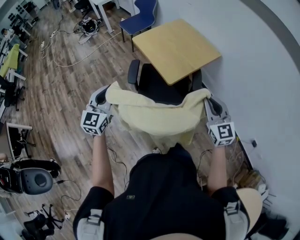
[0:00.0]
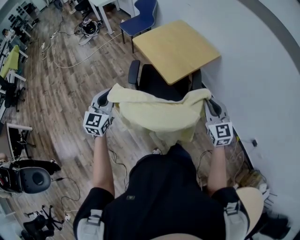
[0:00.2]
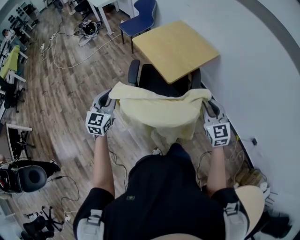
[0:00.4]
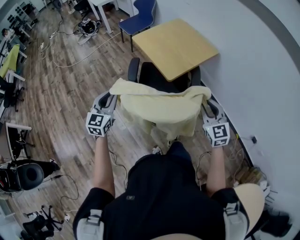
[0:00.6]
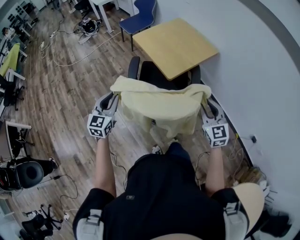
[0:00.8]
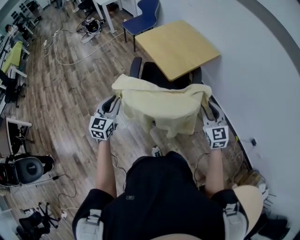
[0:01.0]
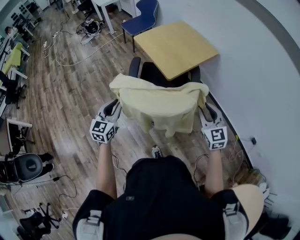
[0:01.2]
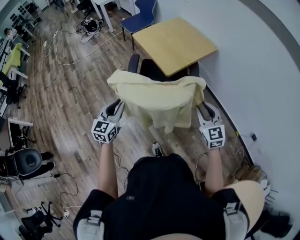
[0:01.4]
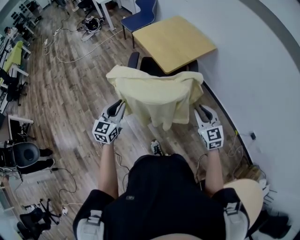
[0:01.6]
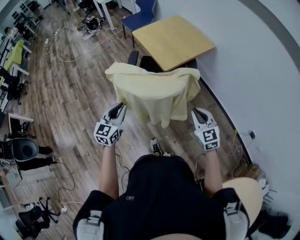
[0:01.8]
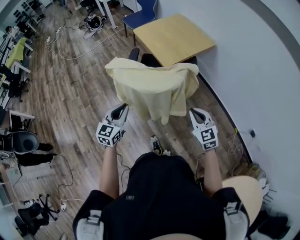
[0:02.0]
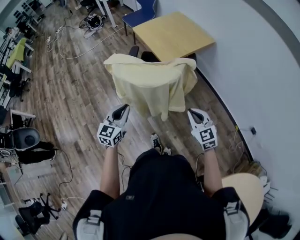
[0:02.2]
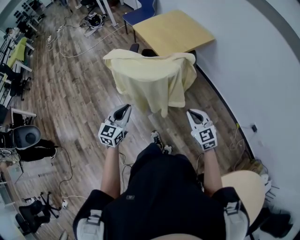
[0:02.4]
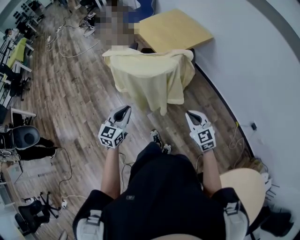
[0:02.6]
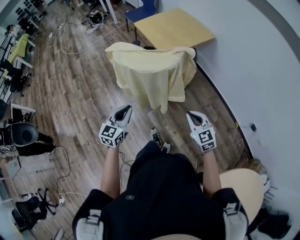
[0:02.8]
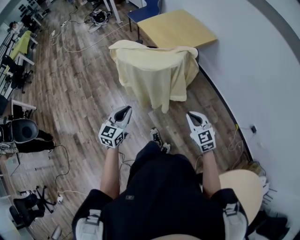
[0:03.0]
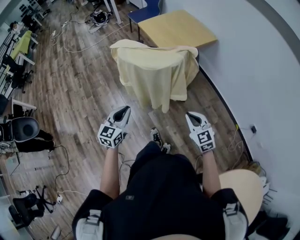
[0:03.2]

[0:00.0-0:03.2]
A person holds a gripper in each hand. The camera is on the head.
0:00.0 to 0:01.6: Both grippers travel together backward and downward, about 15 cm.
0:01.6 to 0:03.2: The grippers both shift backward by approximately 15 cm. The right gripper closes up.

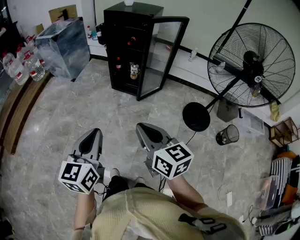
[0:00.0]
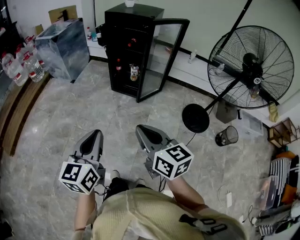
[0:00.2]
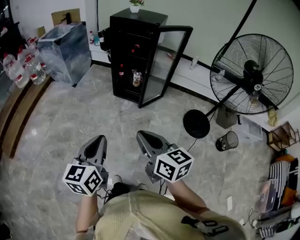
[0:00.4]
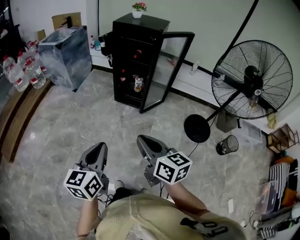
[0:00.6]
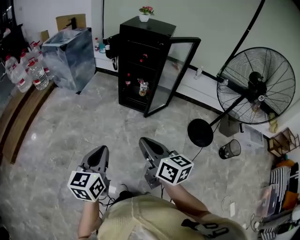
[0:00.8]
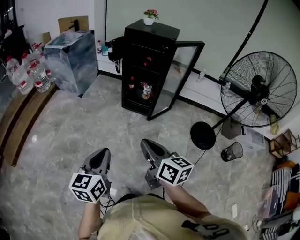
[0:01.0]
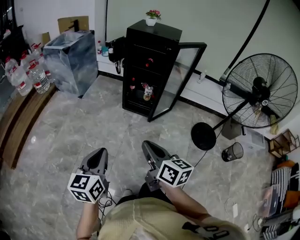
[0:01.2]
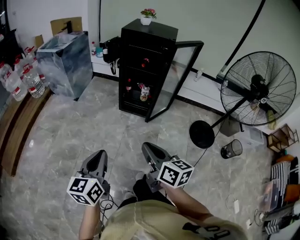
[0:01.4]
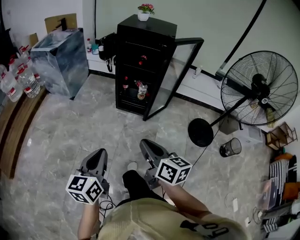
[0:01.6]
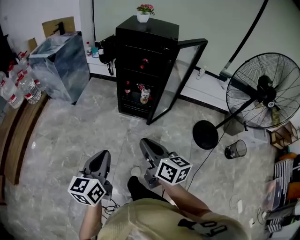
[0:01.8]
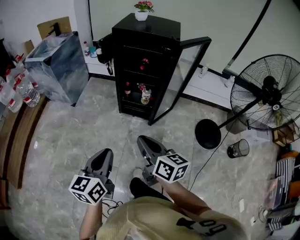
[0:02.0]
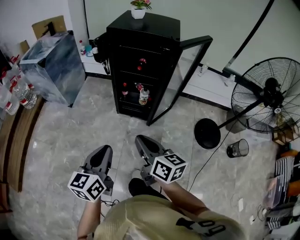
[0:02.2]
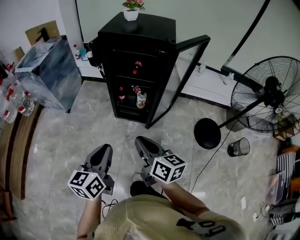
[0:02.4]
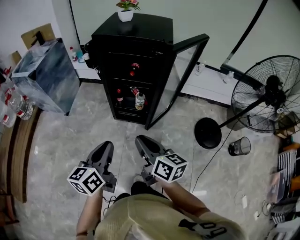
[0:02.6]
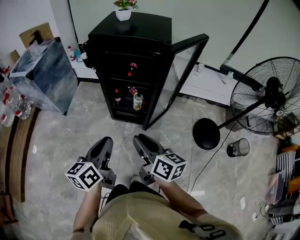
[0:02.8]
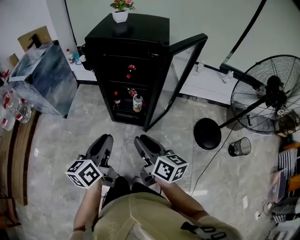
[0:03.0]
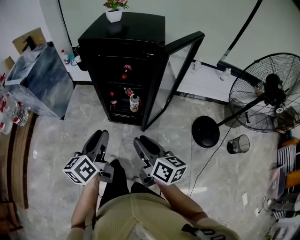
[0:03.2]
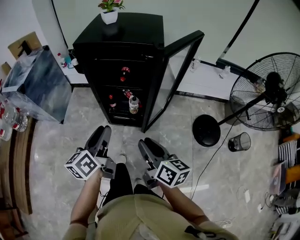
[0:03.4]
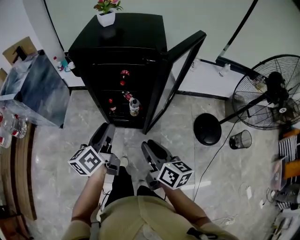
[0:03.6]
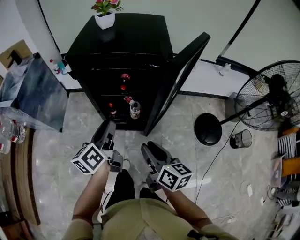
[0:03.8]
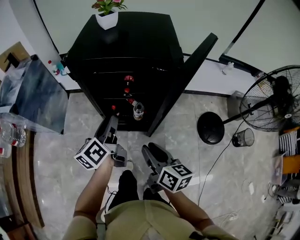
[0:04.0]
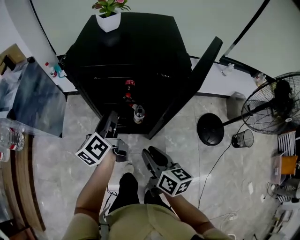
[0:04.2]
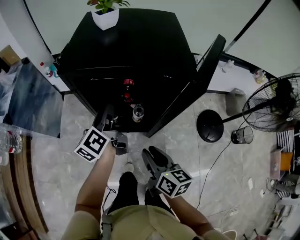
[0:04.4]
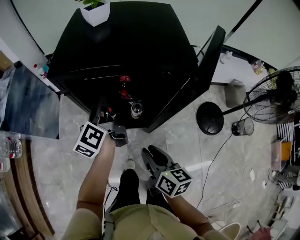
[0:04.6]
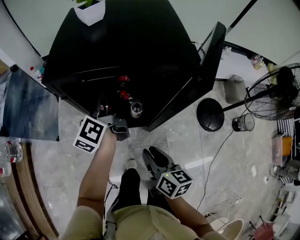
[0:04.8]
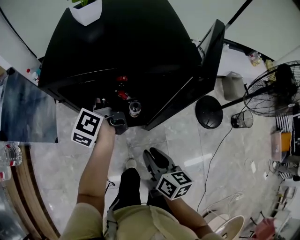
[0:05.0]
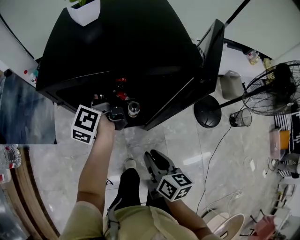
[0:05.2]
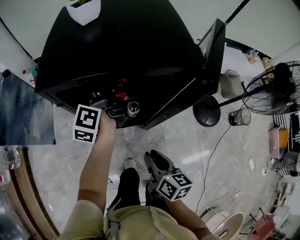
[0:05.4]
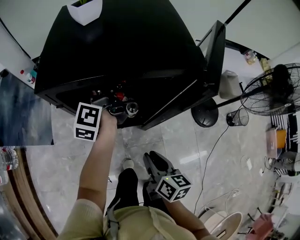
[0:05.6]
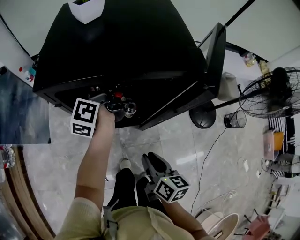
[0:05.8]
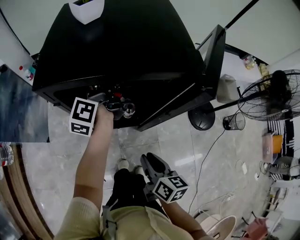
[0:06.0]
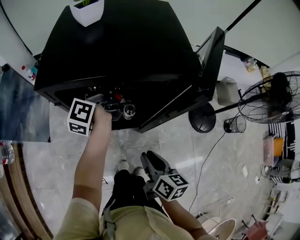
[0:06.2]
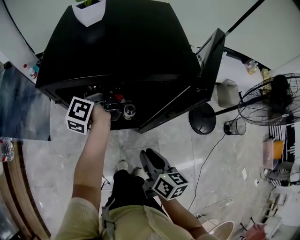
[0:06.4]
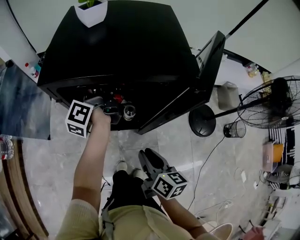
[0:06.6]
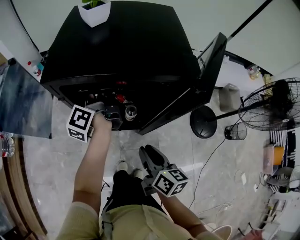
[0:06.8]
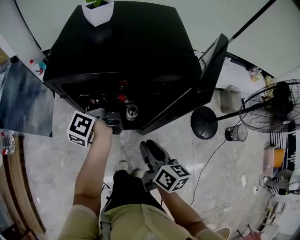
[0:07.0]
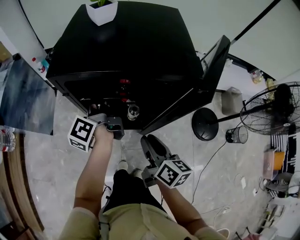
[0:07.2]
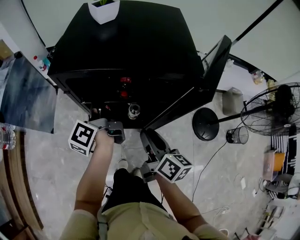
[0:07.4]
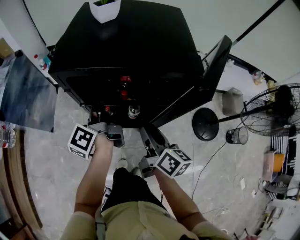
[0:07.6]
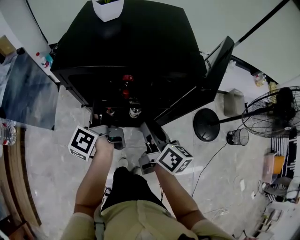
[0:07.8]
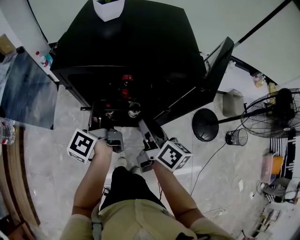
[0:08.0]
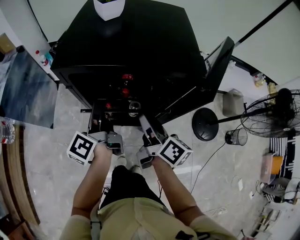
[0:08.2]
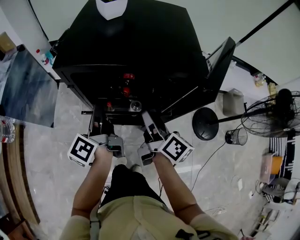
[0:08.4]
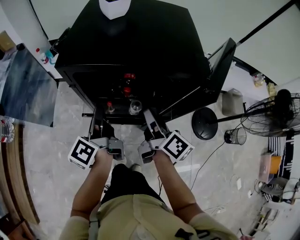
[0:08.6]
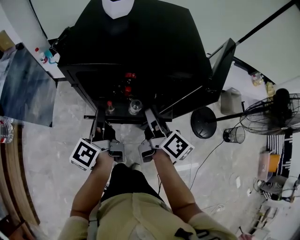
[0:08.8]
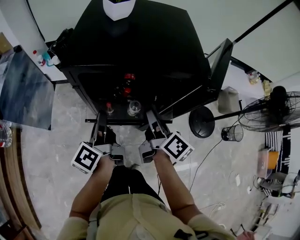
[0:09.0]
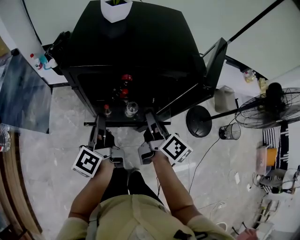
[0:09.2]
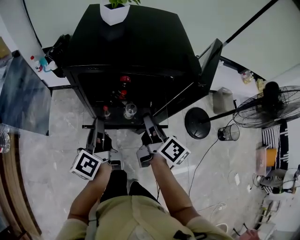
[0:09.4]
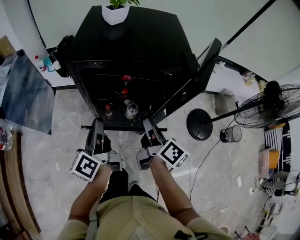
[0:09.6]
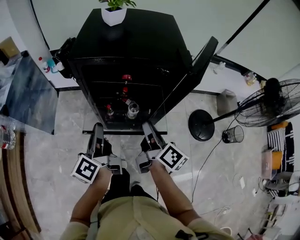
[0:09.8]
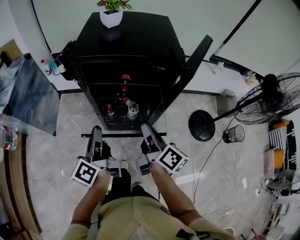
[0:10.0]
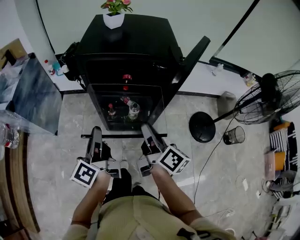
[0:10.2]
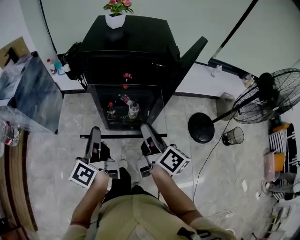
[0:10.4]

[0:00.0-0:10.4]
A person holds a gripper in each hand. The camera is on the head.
0:00.0 to 0:01.4: The two grippers go about 20 cm to the left and forward.
0:01.4 to 0:03.0: The two grippers go about 35 cm forward. The right gripper opens its fingers.
0:03.0 to 0:04.4: The right gripper travels forward by roughly 20 cm. Meanwhile the left gripper moves forward, approximately 35 cm, and opens up.
0:04.4 to 0:06.0: The left gripper goes about 15 cm forward, rotates roughly 20 degrees, and closes, while the right gripper goes roughly 5 cm downward.
0:06.0 to 0:07.4: The left gripper travels backward by about 10 cm; the right gripper heads forward and upward, covering about 10 cm.
0:07.4 to 0:09.0: The left gripper is displaced backward by roughly 10 cm; the right gripper shifts roughly 5 cm forward.
0:09.0 to 0:10.4: The grippers both shift backward by roughly 15 cm.

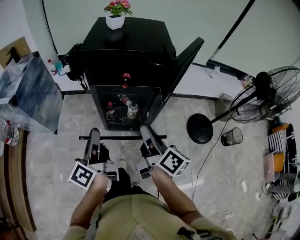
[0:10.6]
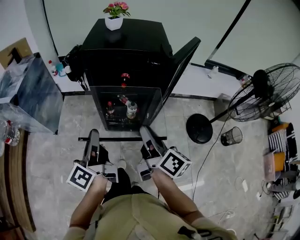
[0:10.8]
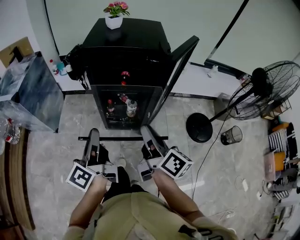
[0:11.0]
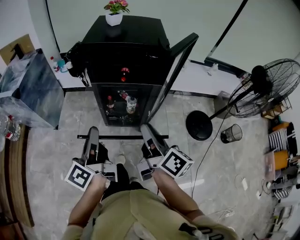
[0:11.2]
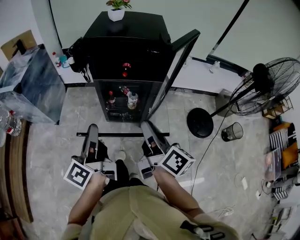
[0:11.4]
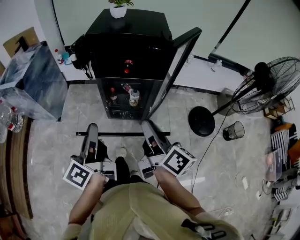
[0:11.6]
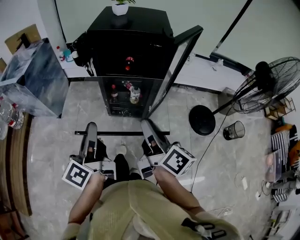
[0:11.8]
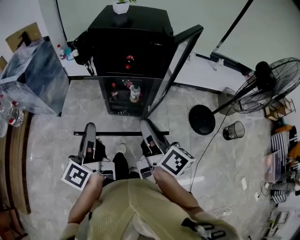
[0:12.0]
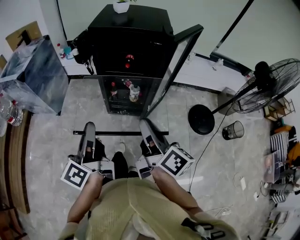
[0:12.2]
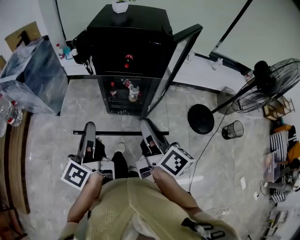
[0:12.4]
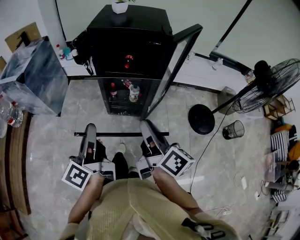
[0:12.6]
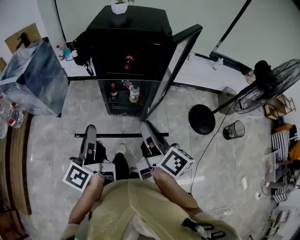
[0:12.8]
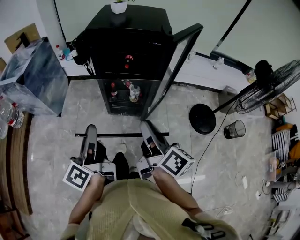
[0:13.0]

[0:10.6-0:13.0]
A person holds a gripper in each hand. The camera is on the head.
0:10.6 to 0:11.8: The two grippers go roughly 10 cm backward.
0:11.8 to 0:13.0: There are only small adjustments of the grippers.

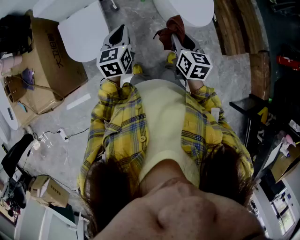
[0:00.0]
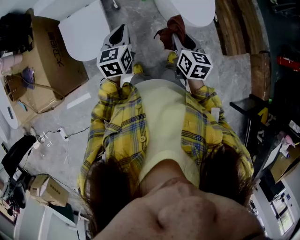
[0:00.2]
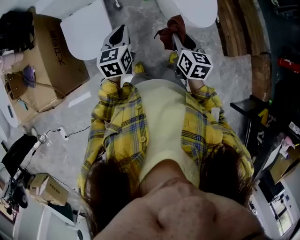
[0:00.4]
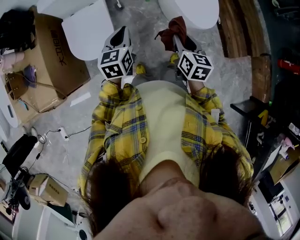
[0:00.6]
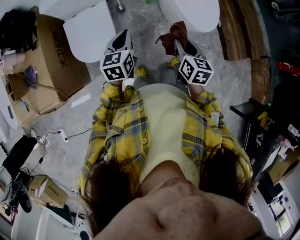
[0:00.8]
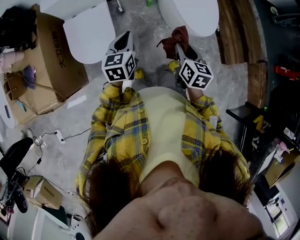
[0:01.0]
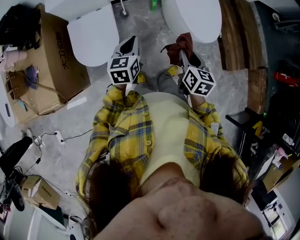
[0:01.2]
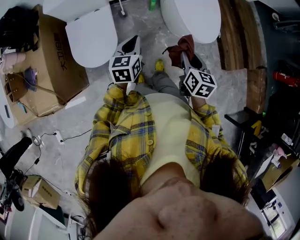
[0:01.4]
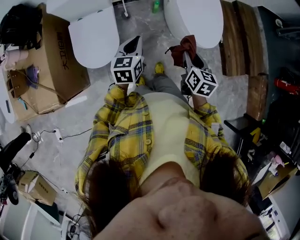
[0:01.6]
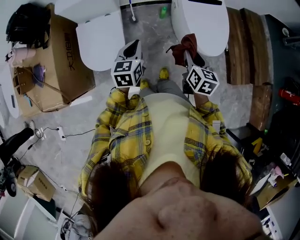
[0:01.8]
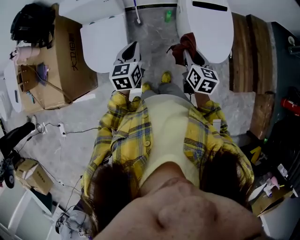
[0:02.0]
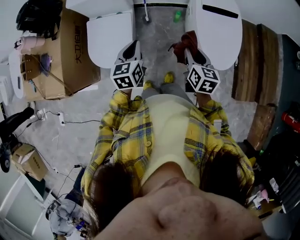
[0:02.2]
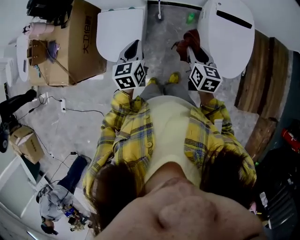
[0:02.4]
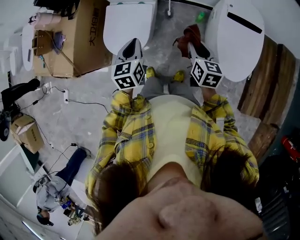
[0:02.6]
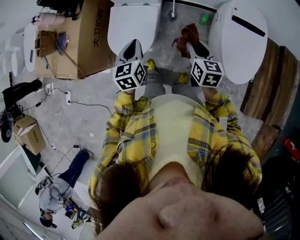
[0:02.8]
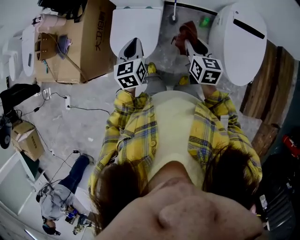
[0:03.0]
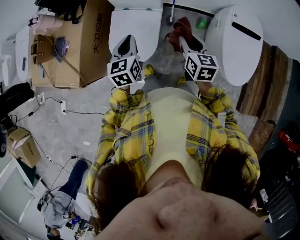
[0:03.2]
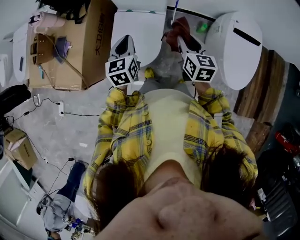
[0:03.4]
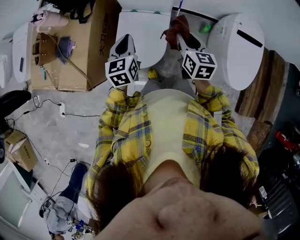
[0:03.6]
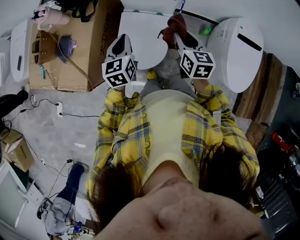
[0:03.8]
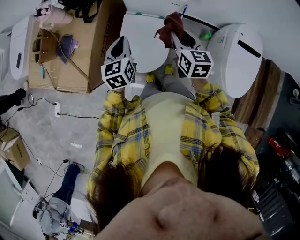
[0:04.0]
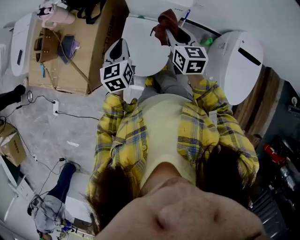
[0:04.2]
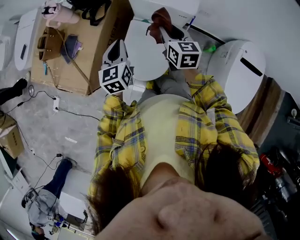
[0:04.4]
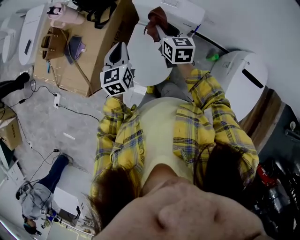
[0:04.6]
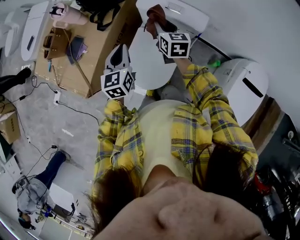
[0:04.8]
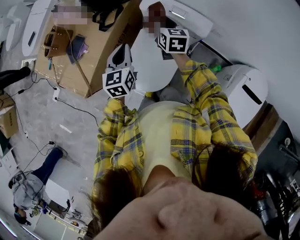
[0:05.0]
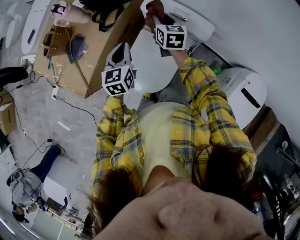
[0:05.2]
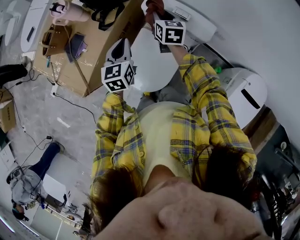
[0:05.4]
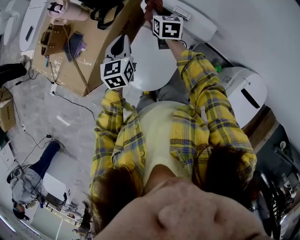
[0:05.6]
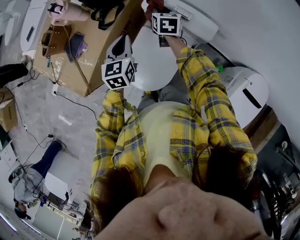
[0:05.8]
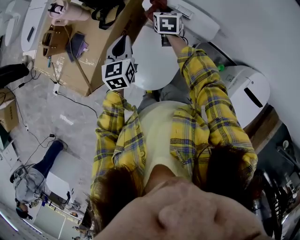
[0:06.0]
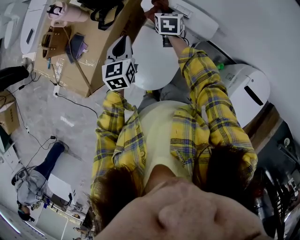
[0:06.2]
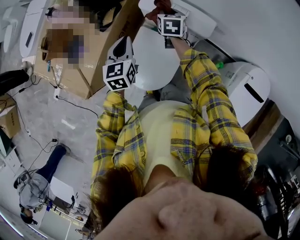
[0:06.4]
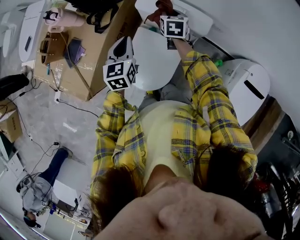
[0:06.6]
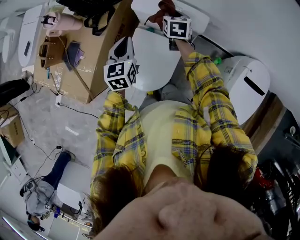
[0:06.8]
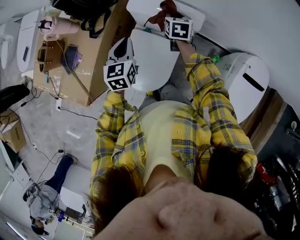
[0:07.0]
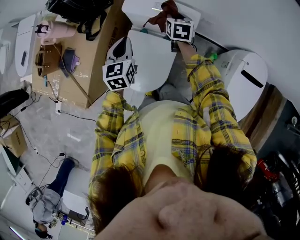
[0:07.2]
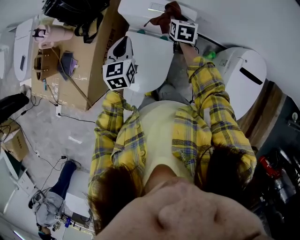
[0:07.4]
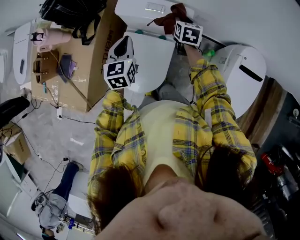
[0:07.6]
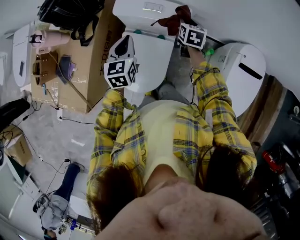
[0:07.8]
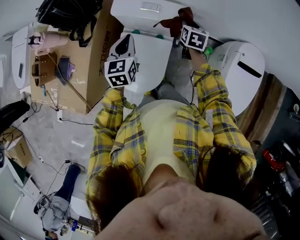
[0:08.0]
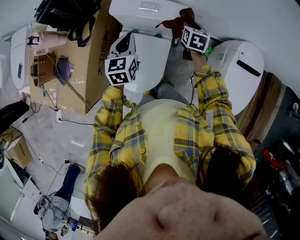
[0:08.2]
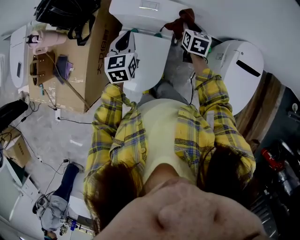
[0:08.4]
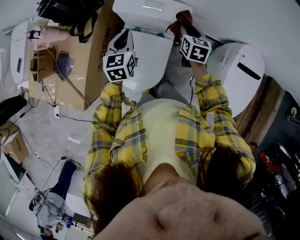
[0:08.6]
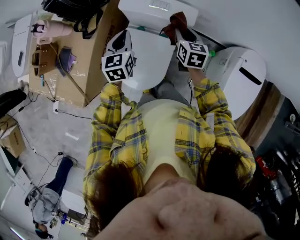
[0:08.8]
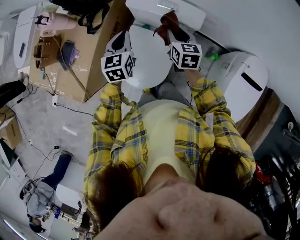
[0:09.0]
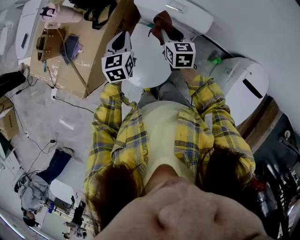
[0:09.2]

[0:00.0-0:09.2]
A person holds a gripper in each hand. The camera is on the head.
0:00.0 to 0:01.6: The grippers make only small movements.
0:01.6 to 0:03.0: The right gripper moves roughly 25 cm, and changes its angle by some 30 degrees. The left gripper shifts by some 15 cm, and swivels some 30 degrees.
0:03.0 to 0:04.6: The right gripper is displaced forward and to the left by roughly 35 cm, and rotates some 20 degrees; the left gripper heads to the left and forward, covering some 25 cm.
0:04.6 to 0:06.2: The right gripper is displaced forward and downward by some 20 cm; the left gripper moves forward, some 10 cm.
0:06.2 to 0:07.6: The left gripper heads to the right, covering some 10 cm; the right gripper is displaced to the right by some 20 cm.
0:07.6 to 0:09.2: The right gripper goes approximately 15 cm to the left and backward, and rotates some 30 degrees. Meanwhile the left gripper moves to the left, about 5 cm.
